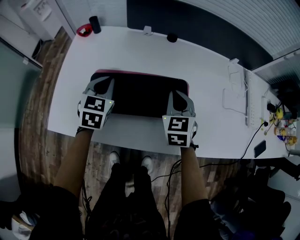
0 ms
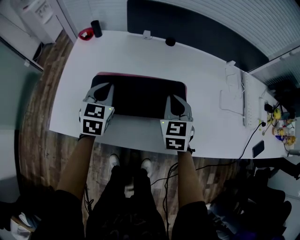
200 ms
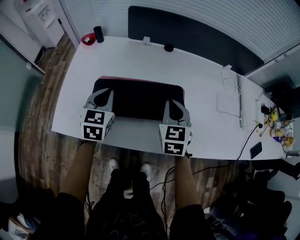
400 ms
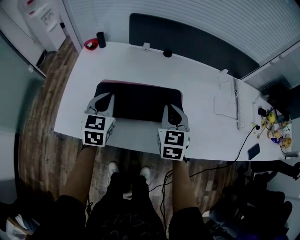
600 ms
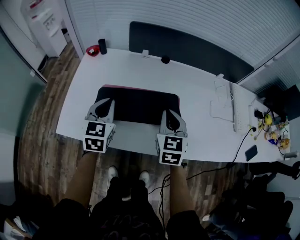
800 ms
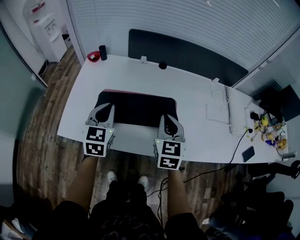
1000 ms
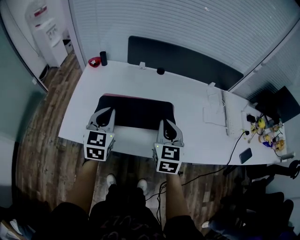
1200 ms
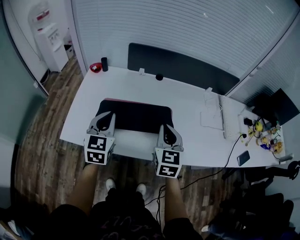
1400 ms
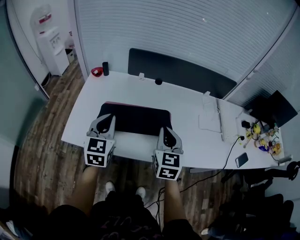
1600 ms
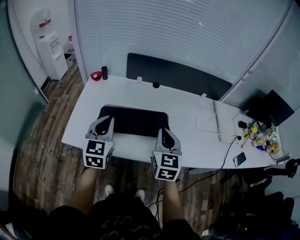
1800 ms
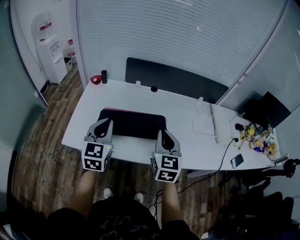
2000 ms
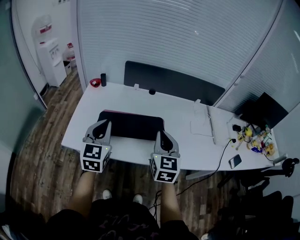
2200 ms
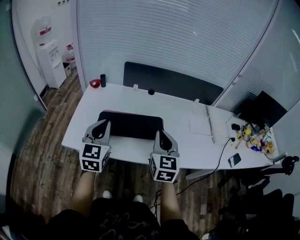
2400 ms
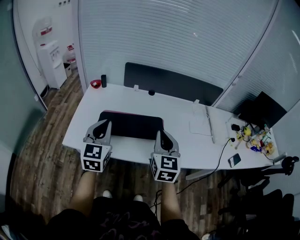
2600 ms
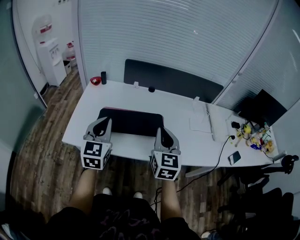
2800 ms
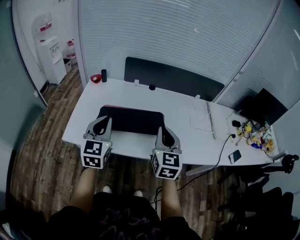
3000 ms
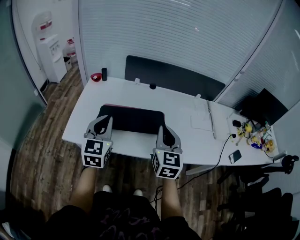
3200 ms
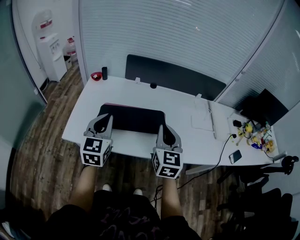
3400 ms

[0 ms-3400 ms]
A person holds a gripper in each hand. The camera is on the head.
0 ms to 1600 ms: The two grippers go about 25 cm upward and backward.
1600 ms to 3400 ms: The left gripper goes some 5 cm backward; the right gripper goes approximately 10 cm backward and upward.

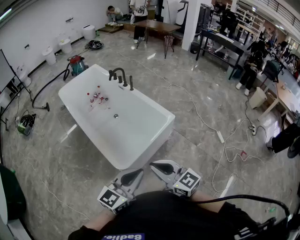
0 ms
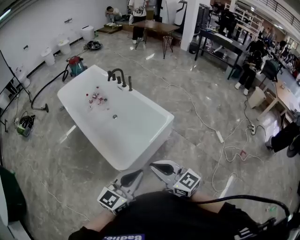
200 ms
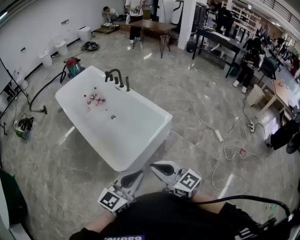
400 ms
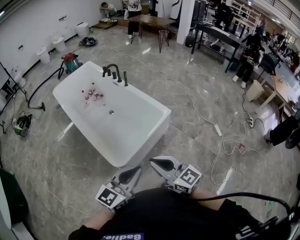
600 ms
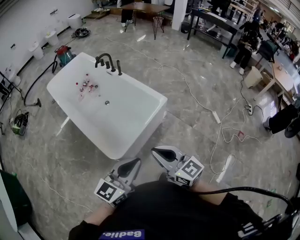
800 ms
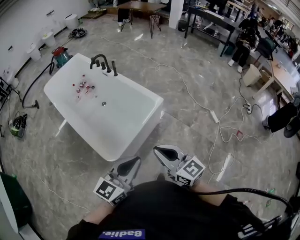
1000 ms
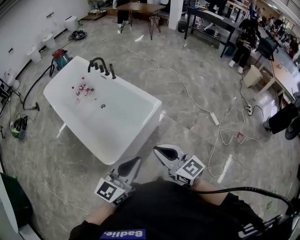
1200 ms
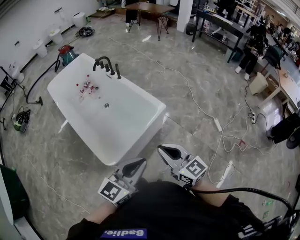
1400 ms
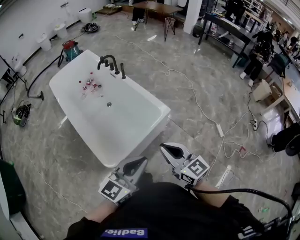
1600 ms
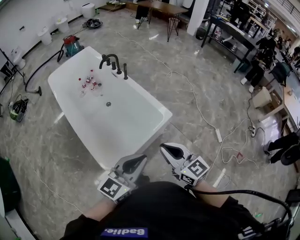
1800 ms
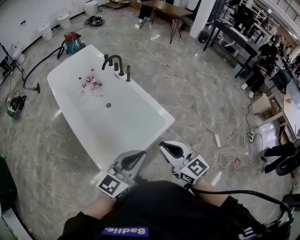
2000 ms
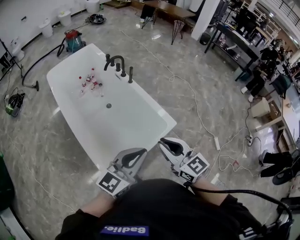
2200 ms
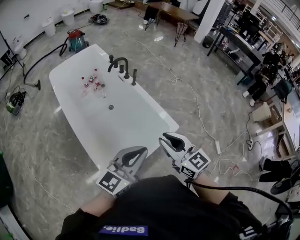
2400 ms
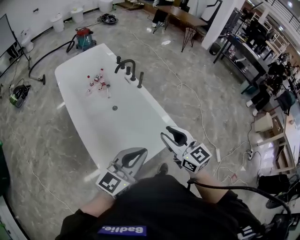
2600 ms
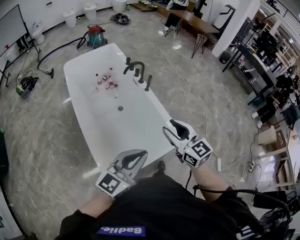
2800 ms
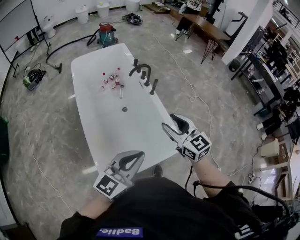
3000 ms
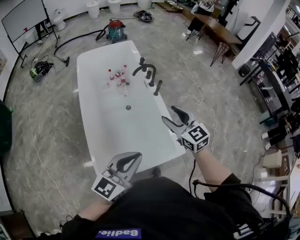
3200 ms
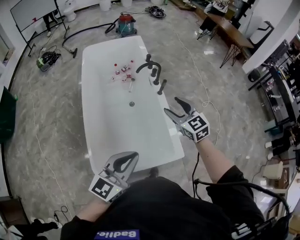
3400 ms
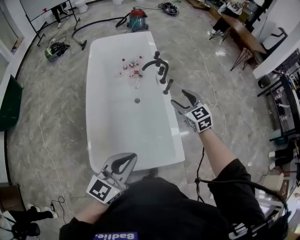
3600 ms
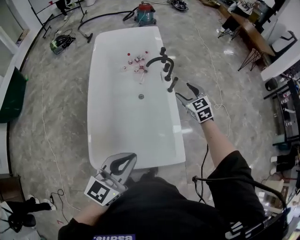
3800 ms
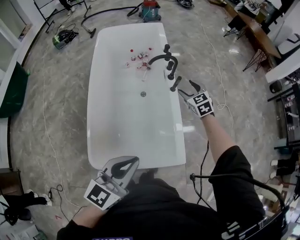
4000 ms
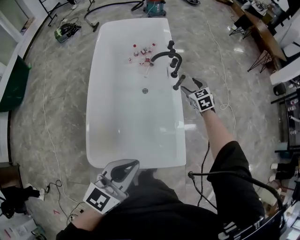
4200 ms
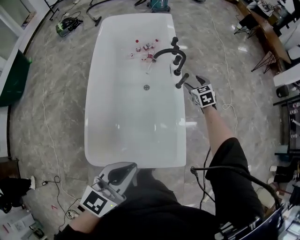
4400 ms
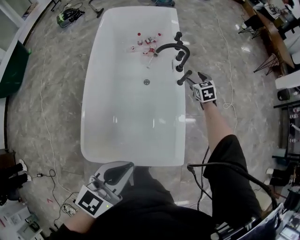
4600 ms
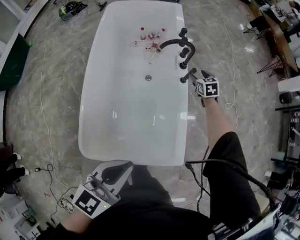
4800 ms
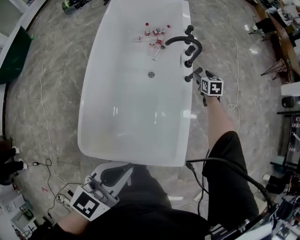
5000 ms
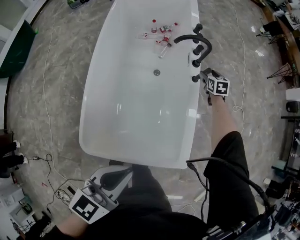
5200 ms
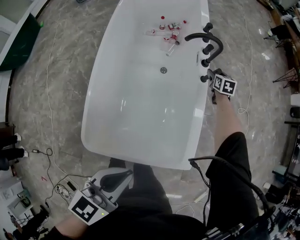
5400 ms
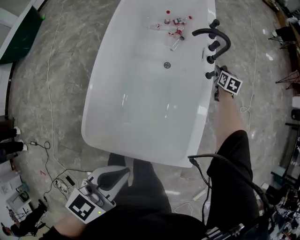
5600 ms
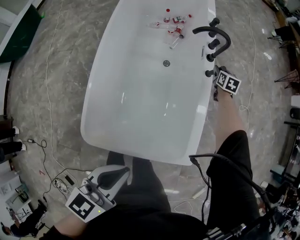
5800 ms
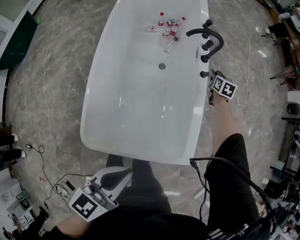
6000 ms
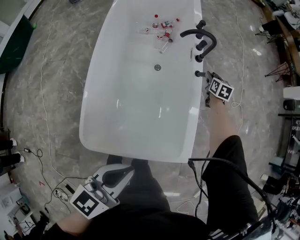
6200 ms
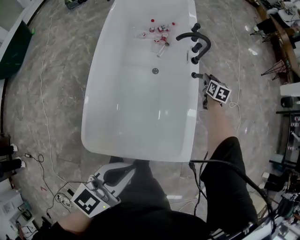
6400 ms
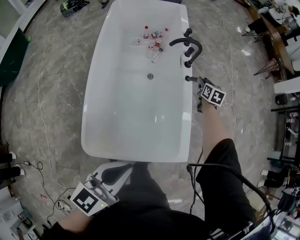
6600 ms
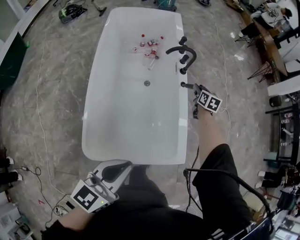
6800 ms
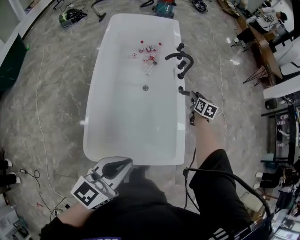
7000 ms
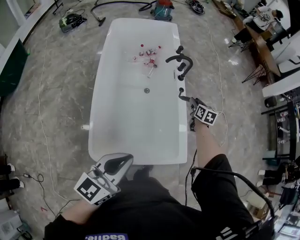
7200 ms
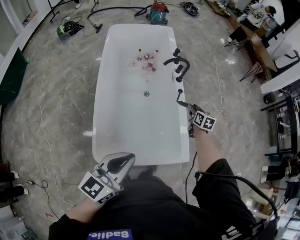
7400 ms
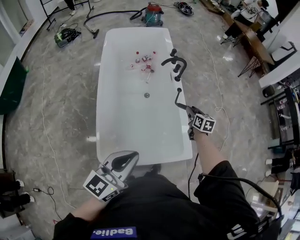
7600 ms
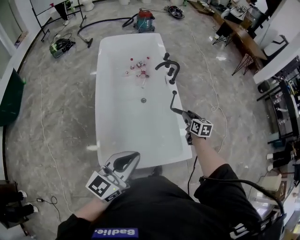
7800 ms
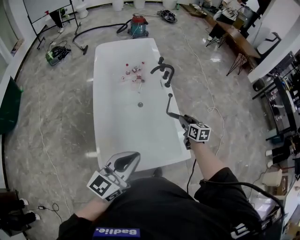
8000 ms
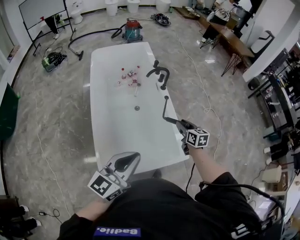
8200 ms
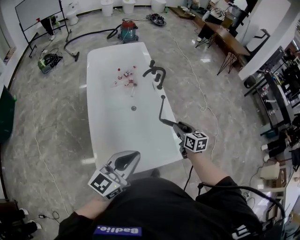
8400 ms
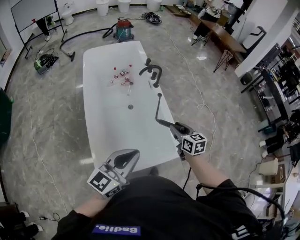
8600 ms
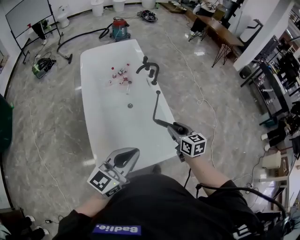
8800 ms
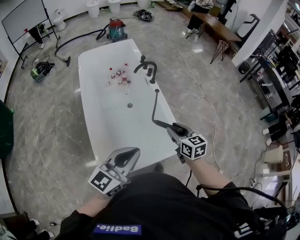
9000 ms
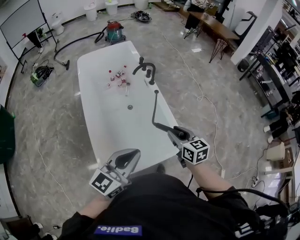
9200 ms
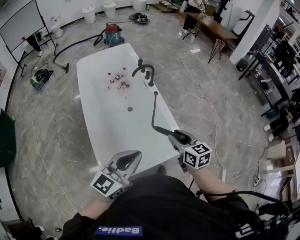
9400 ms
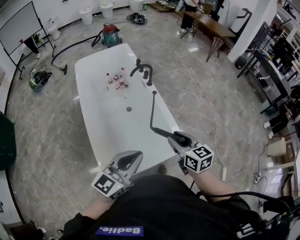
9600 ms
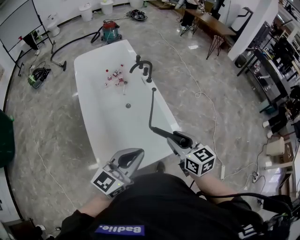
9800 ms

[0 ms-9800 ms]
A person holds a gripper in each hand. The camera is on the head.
0 ms to 1400 ms: The grippers both shift to the right and forward by roughly 20 cm.
1400 ms to 2800 ms: The right gripper goes about 35 cm forward, and opens its fingers. Meanwhile the left gripper travels forward and to the left by some 30 cm.
2800 ms to 4200 ms: The right gripper moves forward and downward, roughly 50 cm, changes its angle by some 40 degrees, and opens, while the left gripper goes approximately 20 cm forward and to the right, and rotates approximately 30 degrees.
4200 ms to 5600 ms: The left gripper travels downward and to the left by approximately 15 cm, while the right gripper goes approximately 25 cm downward and forward, rotates some 30 degrees, and closes.
5600 ms to 7000 ms: The right gripper is displaced backward and upward by about 20 cm, while the left gripper goes some 10 cm upward.
7000 ms to 8400 ms: The right gripper moves backward and upward, some 30 cm, while the left gripper travels upward by about 10 cm.
8400 ms to 9800 ms: The right gripper shifts some 20 cm backward and upward.

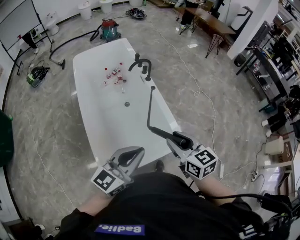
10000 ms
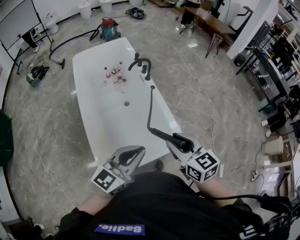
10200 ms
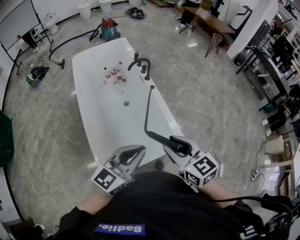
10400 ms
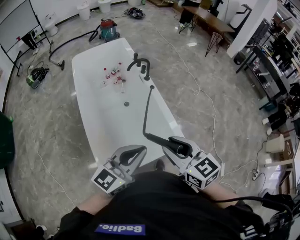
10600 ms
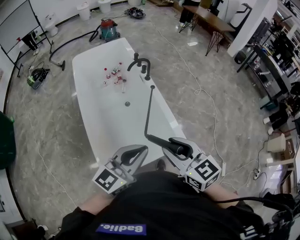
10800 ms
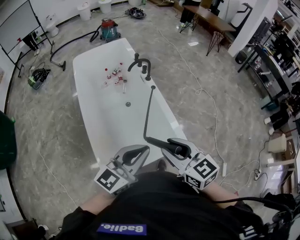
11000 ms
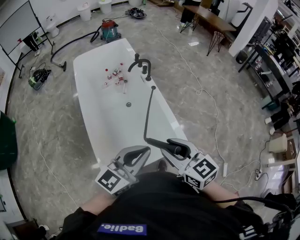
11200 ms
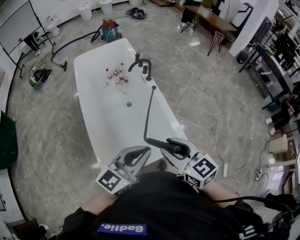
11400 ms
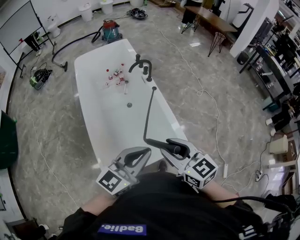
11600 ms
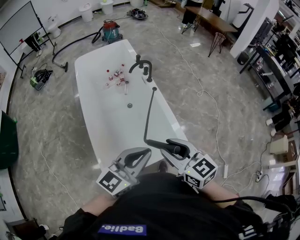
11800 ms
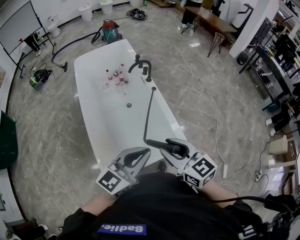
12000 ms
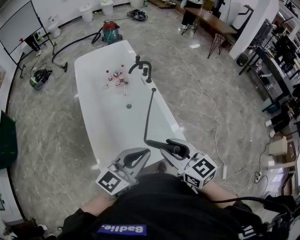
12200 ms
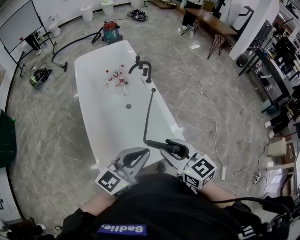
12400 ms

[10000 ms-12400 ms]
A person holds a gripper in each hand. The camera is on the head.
10000 ms to 11200 ms: There are only small adjustments of the grippers.
11200 ms to 12400 ms: Neither gripper changes place.

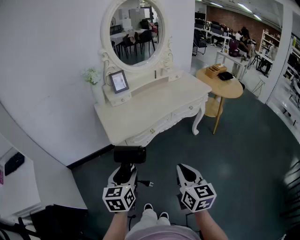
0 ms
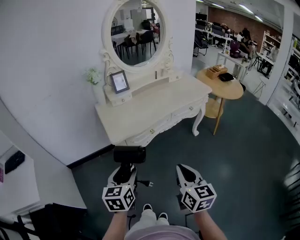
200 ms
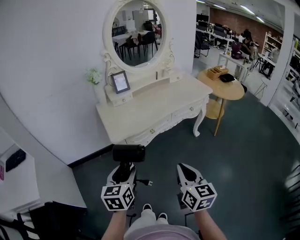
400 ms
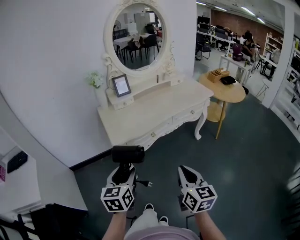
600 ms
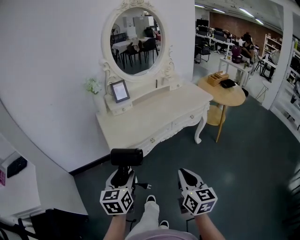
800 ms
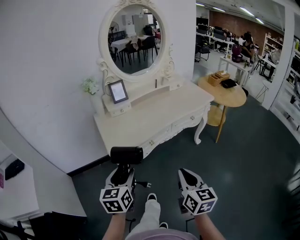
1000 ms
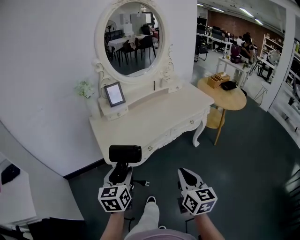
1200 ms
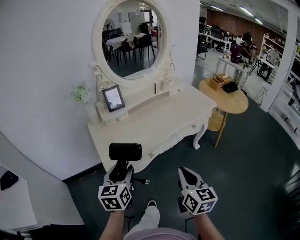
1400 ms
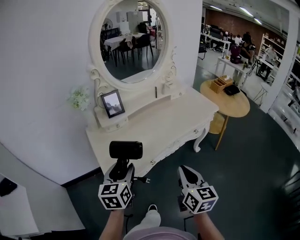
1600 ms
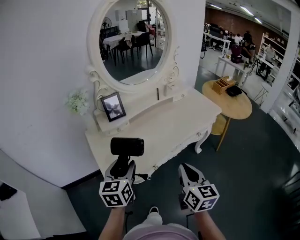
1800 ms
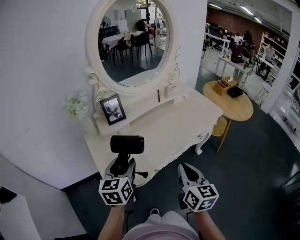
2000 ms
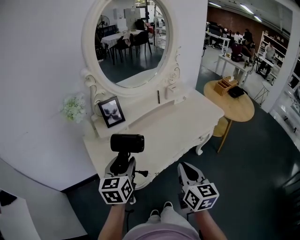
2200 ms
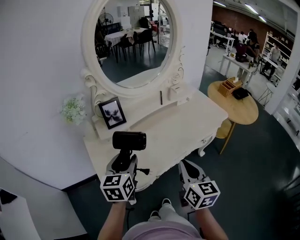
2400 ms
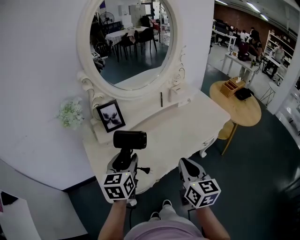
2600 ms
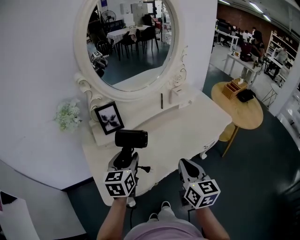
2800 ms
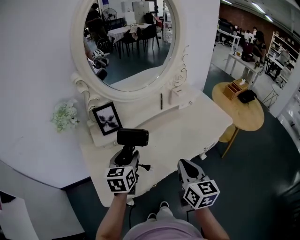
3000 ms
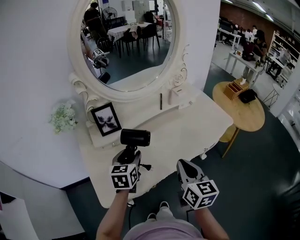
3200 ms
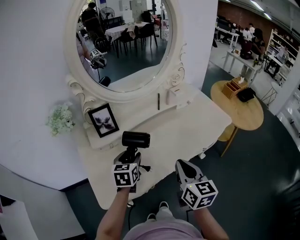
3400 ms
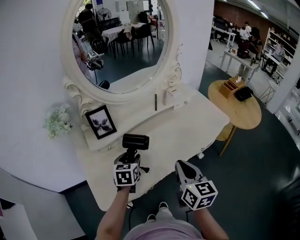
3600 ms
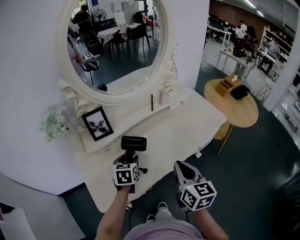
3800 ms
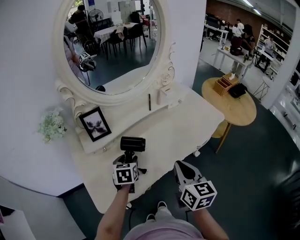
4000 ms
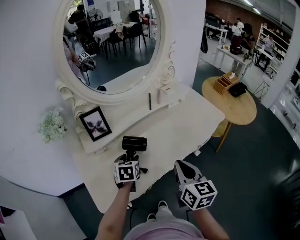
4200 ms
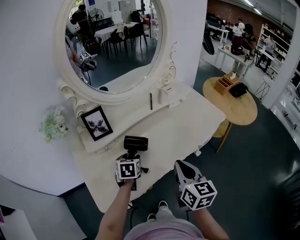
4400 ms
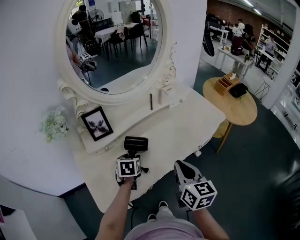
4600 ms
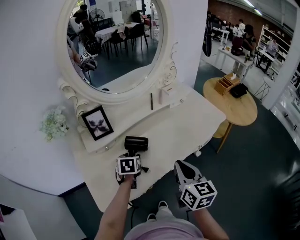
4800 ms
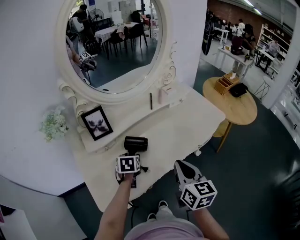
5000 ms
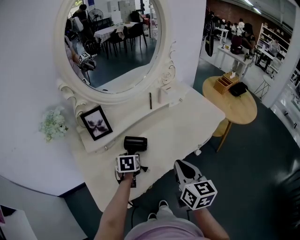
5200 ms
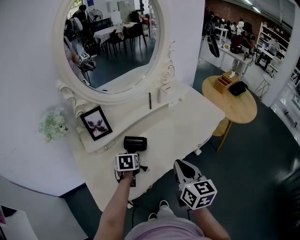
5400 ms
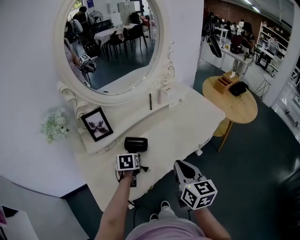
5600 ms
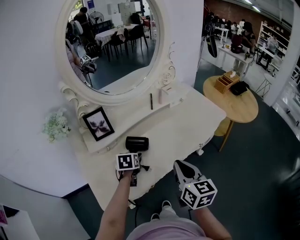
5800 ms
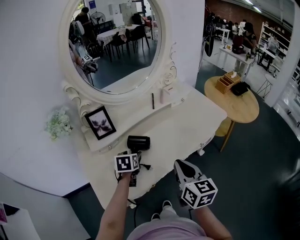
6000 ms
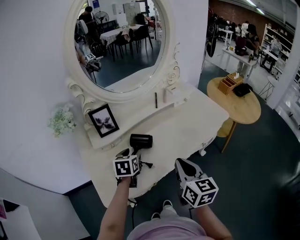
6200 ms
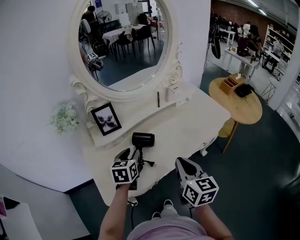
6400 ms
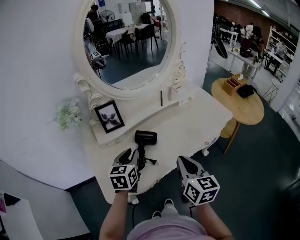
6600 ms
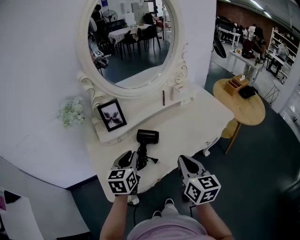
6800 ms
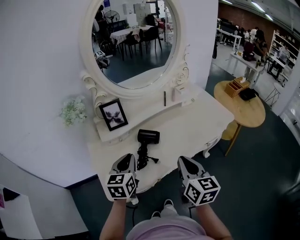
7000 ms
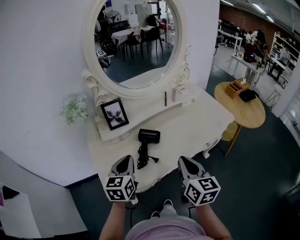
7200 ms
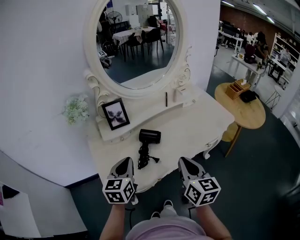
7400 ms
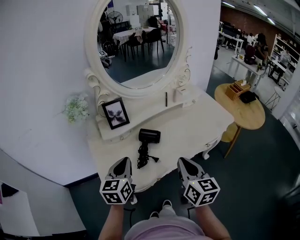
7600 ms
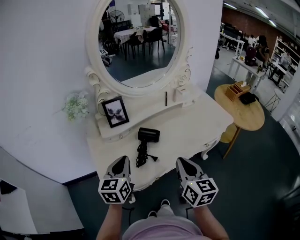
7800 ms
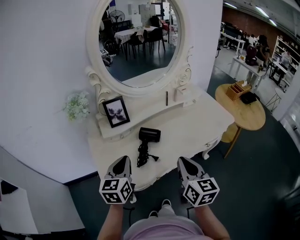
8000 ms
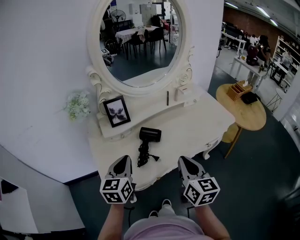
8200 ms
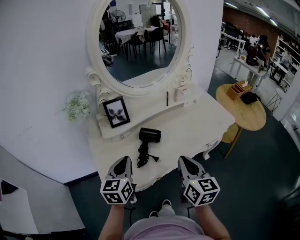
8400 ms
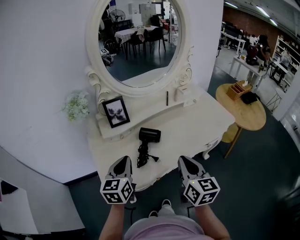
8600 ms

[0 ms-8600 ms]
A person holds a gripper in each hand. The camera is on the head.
0 ms to 1400 ms: Both grippers travel together forward, about 15 cm.
1400 ms to 2800 ms: Both grippers move forward, some 25 cm.
2800 ms to 4400 ms: The left gripper shifts some 15 cm downward and forward, and rotates approximately 30 degrees.
4400 ms to 5800 ms: The grippers make only small movements.
5800 ms to 7200 ms: The left gripper travels upward and backward by approximately 20 cm, tilts its fingers approximately 30 degrees upward, and closes up.
7200 ms to 8600 ms: There are only small adjustments of the grippers.
